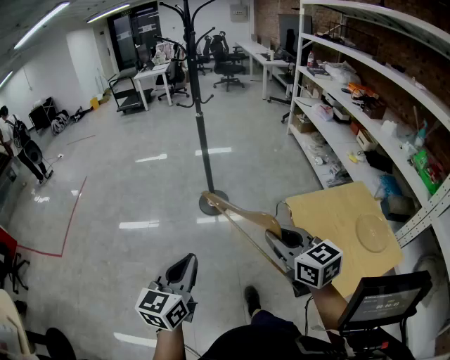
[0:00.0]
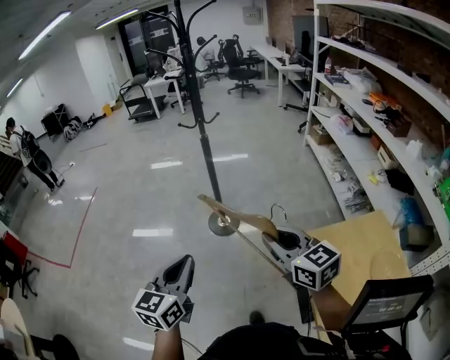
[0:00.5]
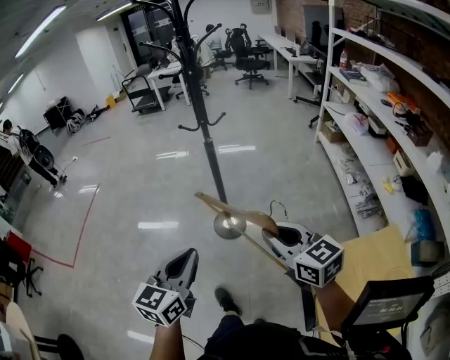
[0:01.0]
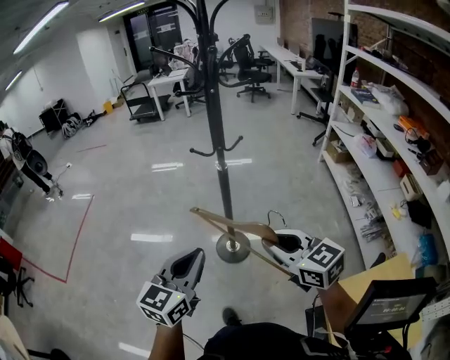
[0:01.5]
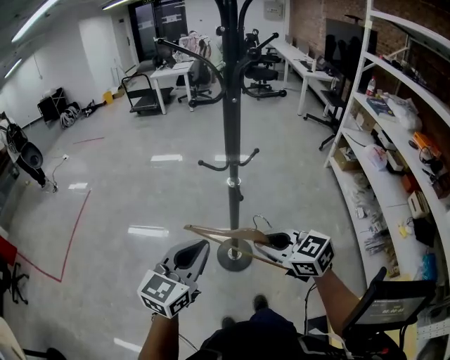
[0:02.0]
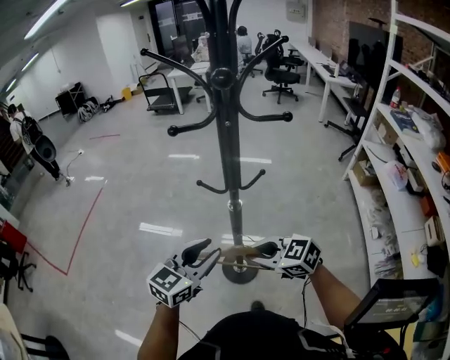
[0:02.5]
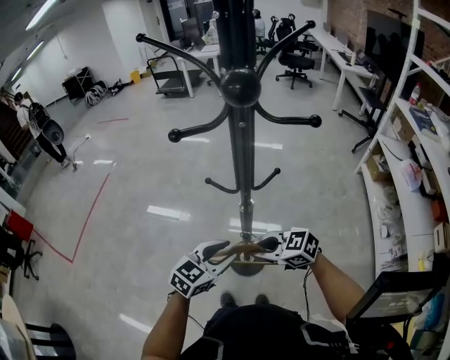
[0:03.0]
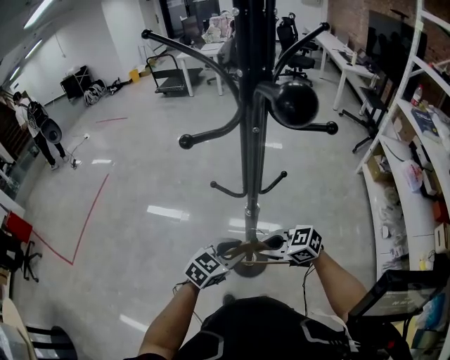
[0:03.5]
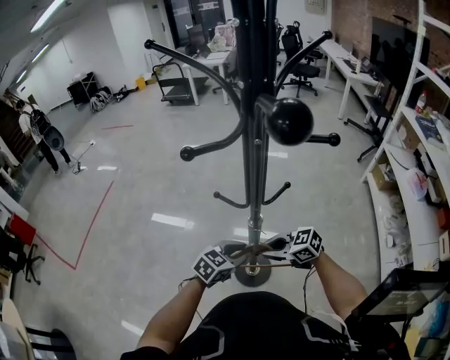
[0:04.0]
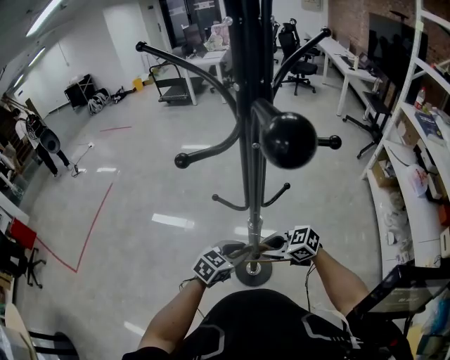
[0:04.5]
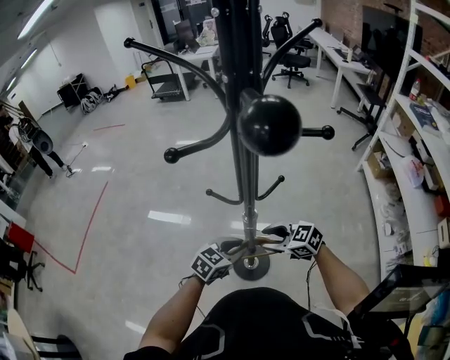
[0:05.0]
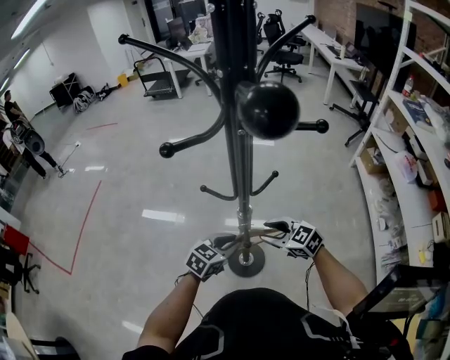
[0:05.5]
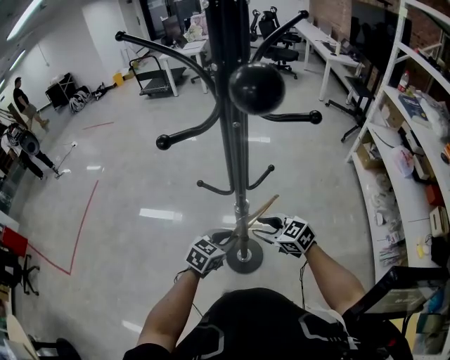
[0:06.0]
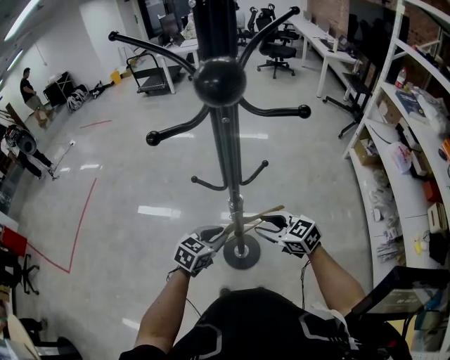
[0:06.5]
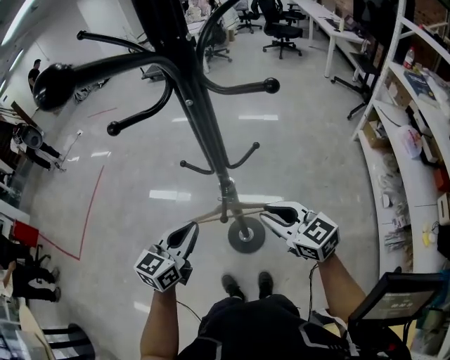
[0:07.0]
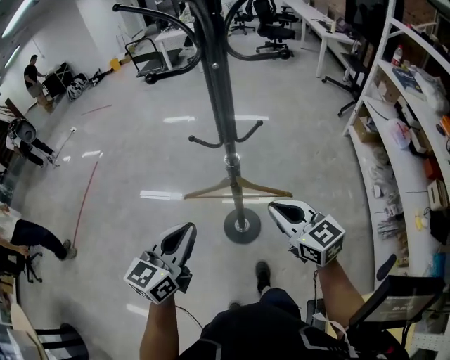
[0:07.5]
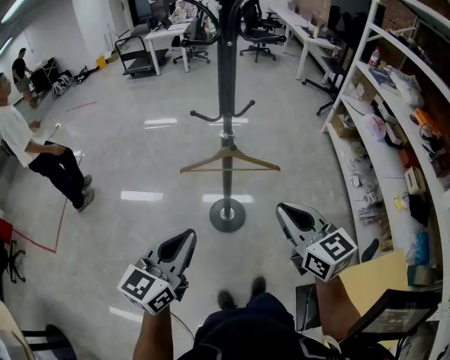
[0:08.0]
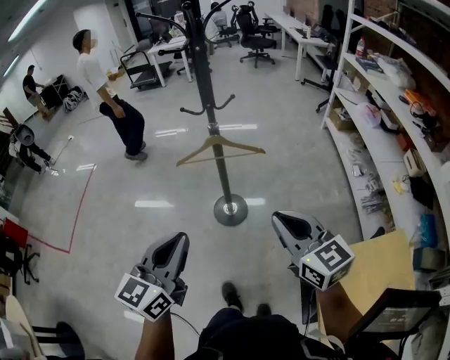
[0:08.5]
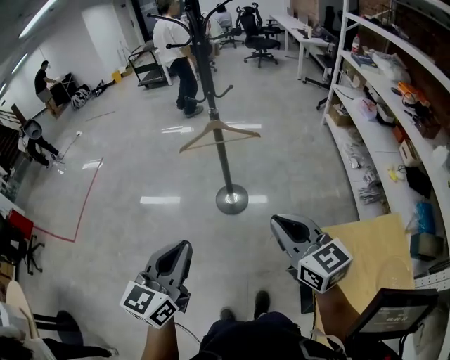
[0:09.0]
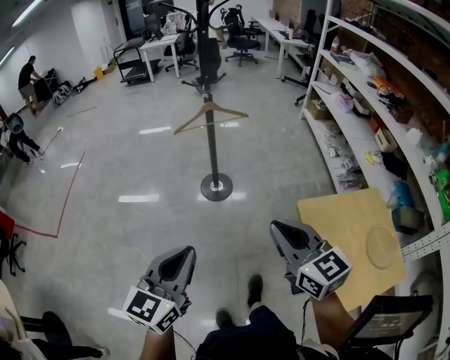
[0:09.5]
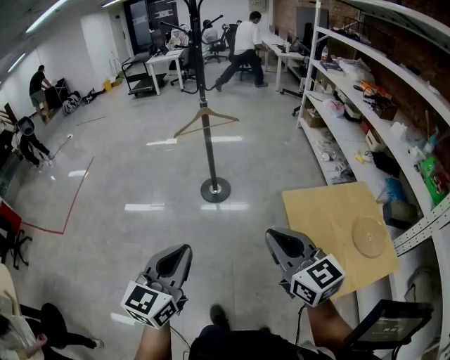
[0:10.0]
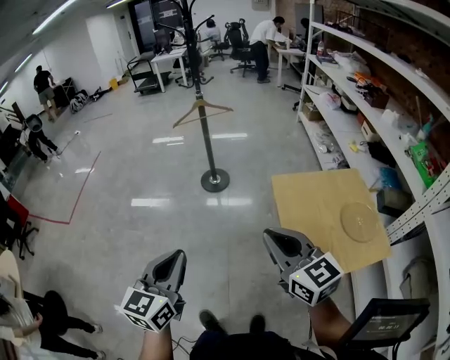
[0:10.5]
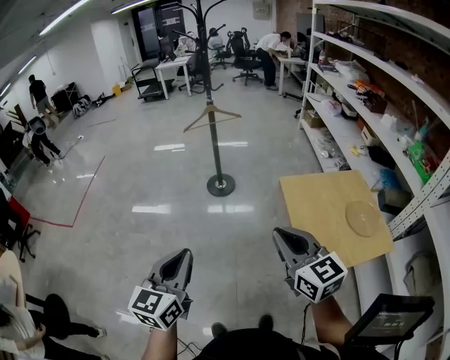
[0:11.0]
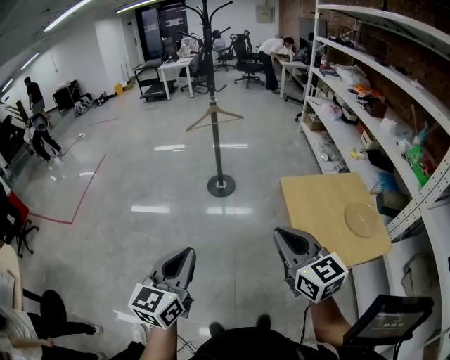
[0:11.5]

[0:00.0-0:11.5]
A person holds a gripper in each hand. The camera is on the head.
0:00.0 to 0:02.0: The two grippers travel together, forward, approximately 50 cm. The right gripper swivels about 30 degrees.
0:02.0 to 0:04.0: The left gripper heads downward, covering roughly 20 cm, rotates roughly 30 degrees, and opens, while the right gripper changes place by approximately 25 cm, and rotates some 30 degrees.
0:04.0 to 0:06.0: The right gripper rotates some 20 degrees, and opens its fingers.
0:06.0 to 0:07.5: The right gripper moves upward and backward, some 20 cm, rotates roughly 20 degrees, and closes up, while the left gripper shifts roughly 25 cm upward, backward and to the left, and changes its angle by some 30 degrees.
0:07.5 to 0:09.5: The two grippers travel together, backward, some 50 cm.
0:09.5 to 0:11.5: Both grippers travel together backward, roughly 25 cm.

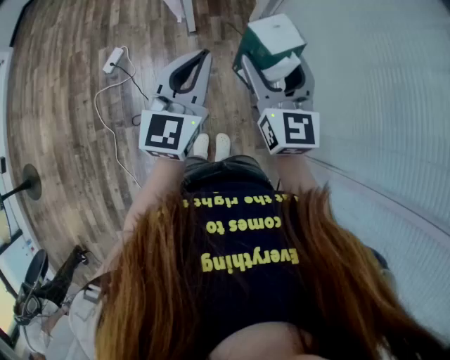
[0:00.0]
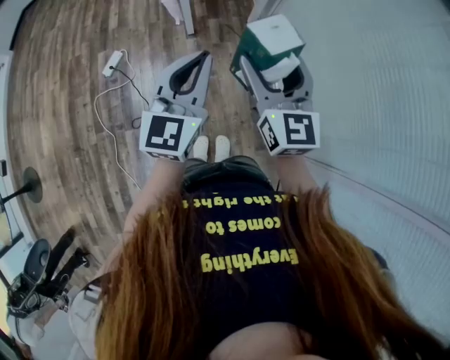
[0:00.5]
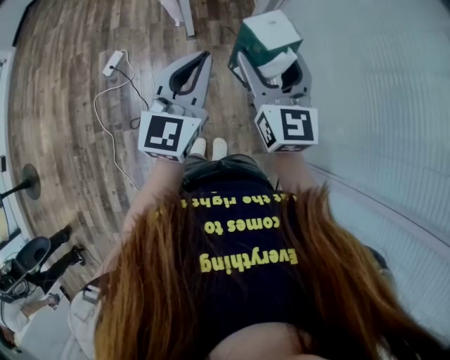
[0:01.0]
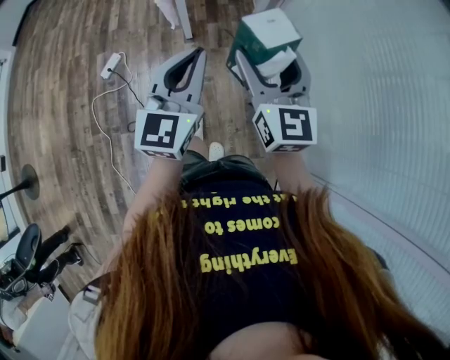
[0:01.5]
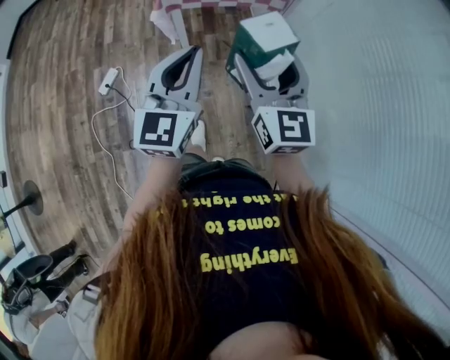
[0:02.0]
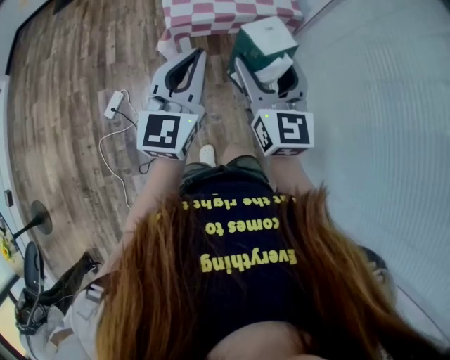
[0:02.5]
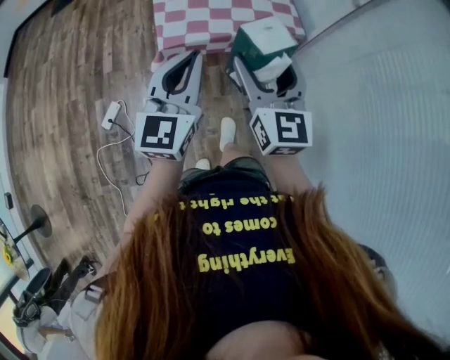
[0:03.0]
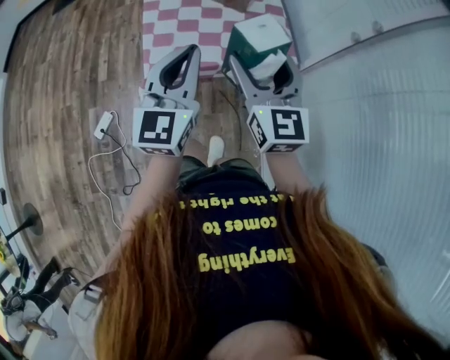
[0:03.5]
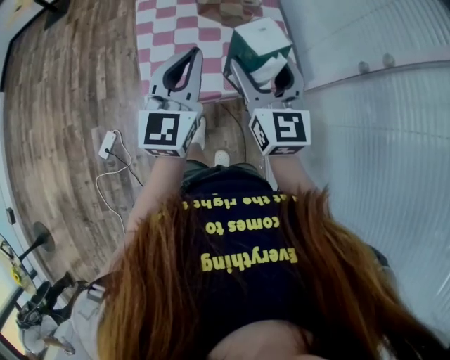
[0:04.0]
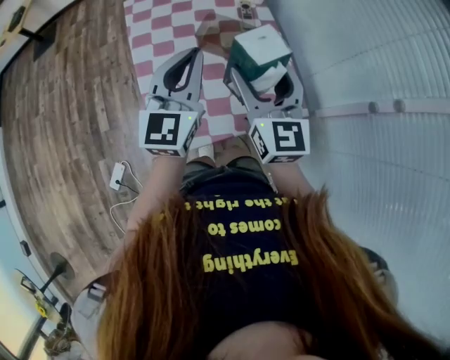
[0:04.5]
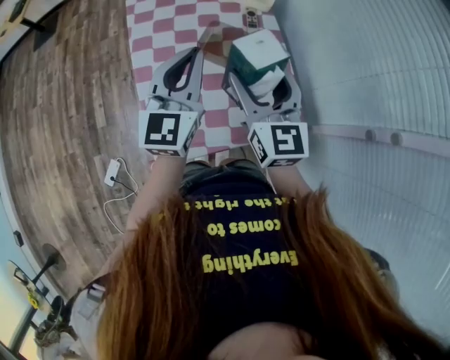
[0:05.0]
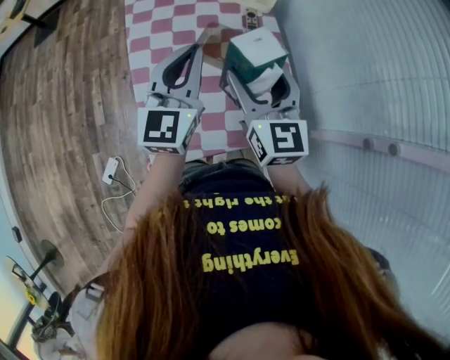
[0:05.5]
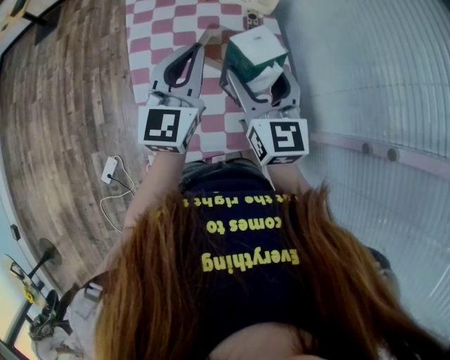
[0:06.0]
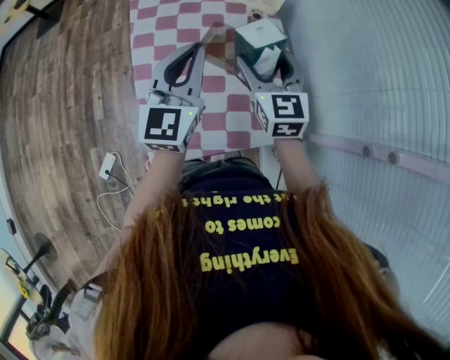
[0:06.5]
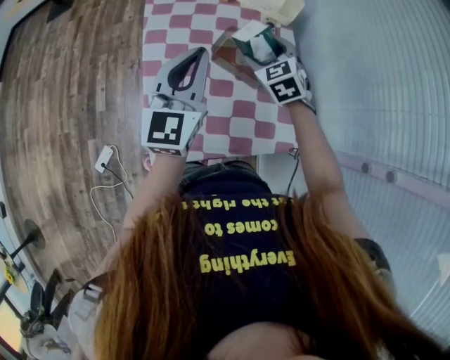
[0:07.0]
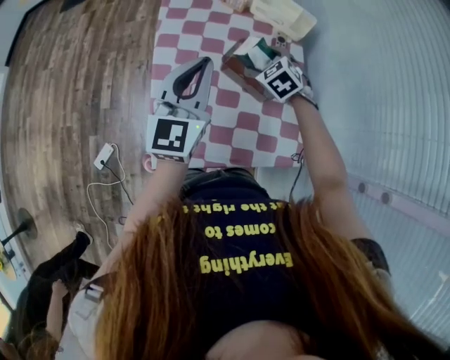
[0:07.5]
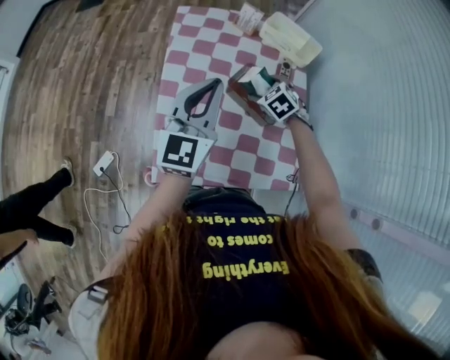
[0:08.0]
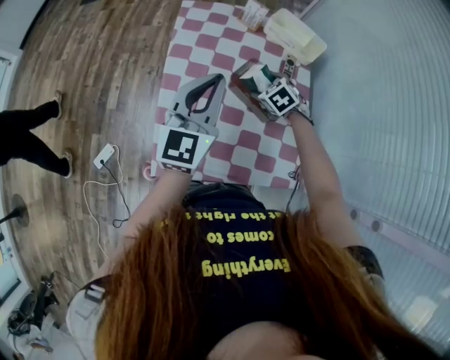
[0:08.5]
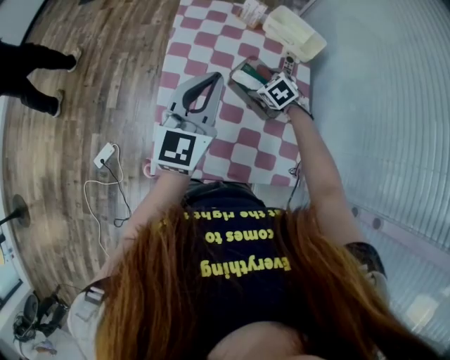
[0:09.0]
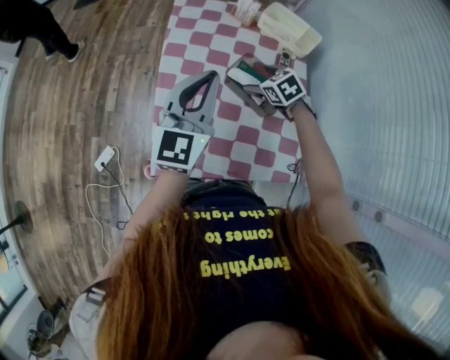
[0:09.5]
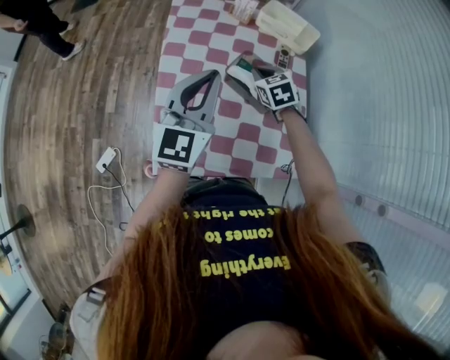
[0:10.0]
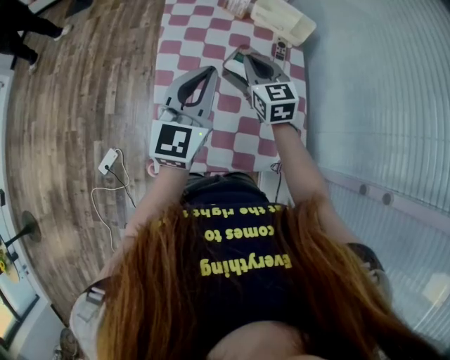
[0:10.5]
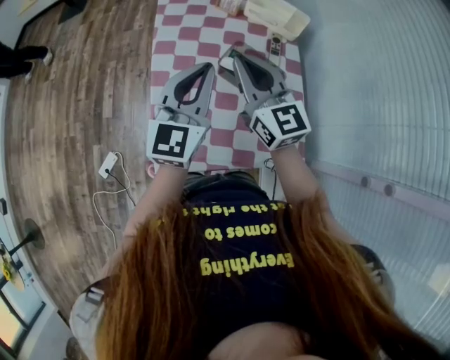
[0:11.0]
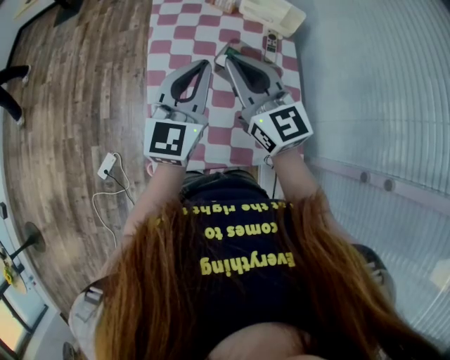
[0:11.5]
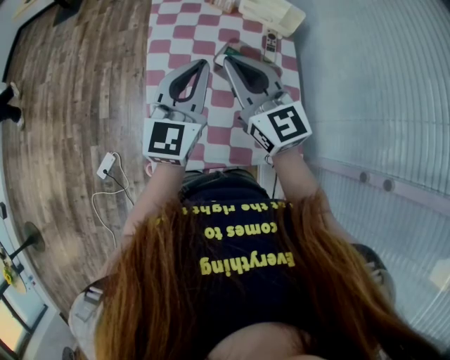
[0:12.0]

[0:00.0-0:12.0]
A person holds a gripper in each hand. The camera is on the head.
0:00.0 to 0:02.0: Both grippers travel together forward, approximately 15 cm.
0:02.0 to 0:04.0: Both grippers are carried forward, some 50 cm.
0:04.0 to 0:06.0: Both grippers travel together forward, roughly 20 cm.
0:06.0 to 0:08.0: The right gripper goes some 30 cm downward and forward, and angles its fingers downward, by roughly 50 degrees, while the left gripper ends up some 5 cm from where it was.
0:08.0 to 0:10.0: The right gripper rotates approximately 20 degrees, and closes its fingers.
0:10.0 to 0:12.0: The right gripper shifts roughly 25 cm upward and backward, and angles its fingers upward, by approximately 40 degrees.

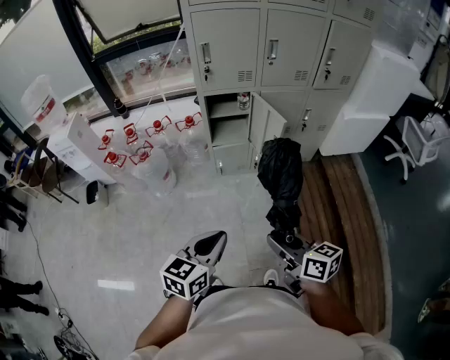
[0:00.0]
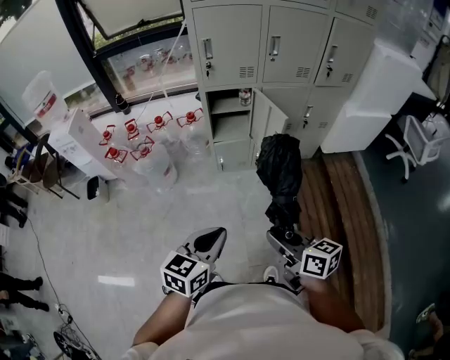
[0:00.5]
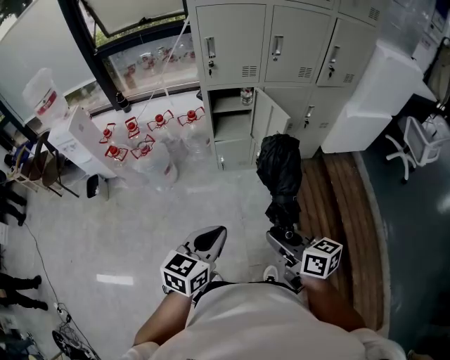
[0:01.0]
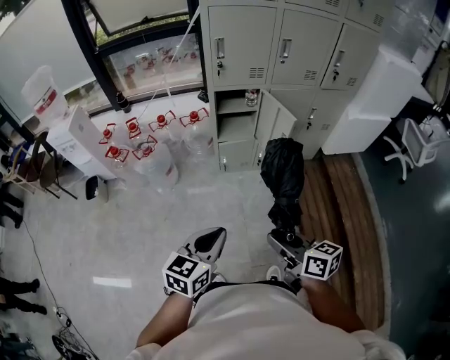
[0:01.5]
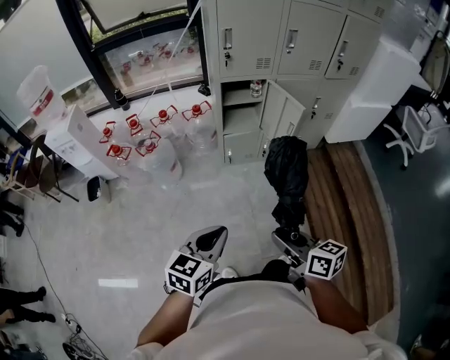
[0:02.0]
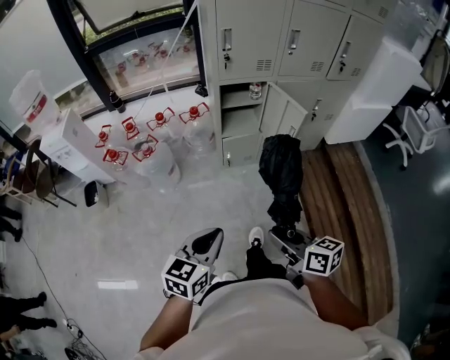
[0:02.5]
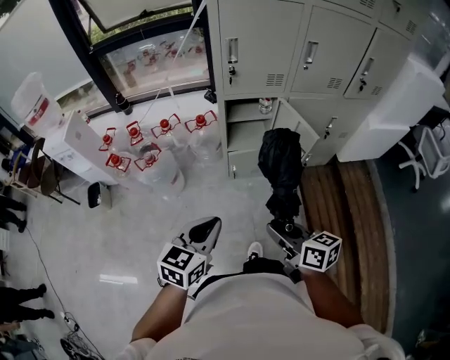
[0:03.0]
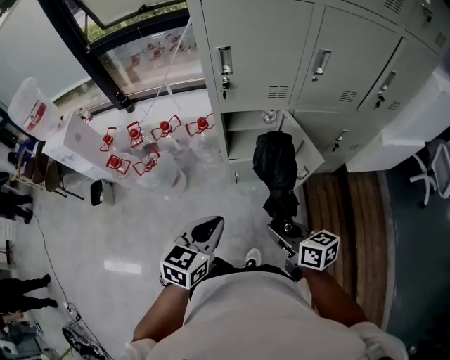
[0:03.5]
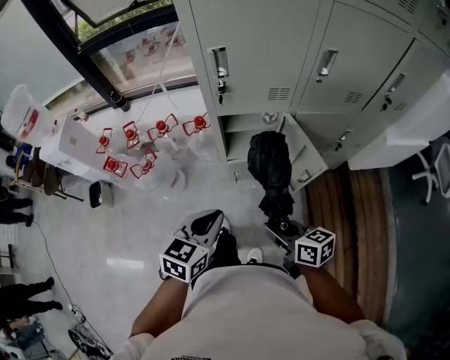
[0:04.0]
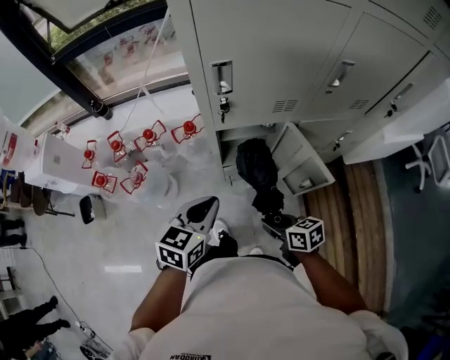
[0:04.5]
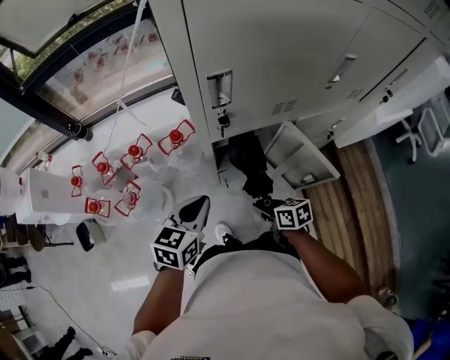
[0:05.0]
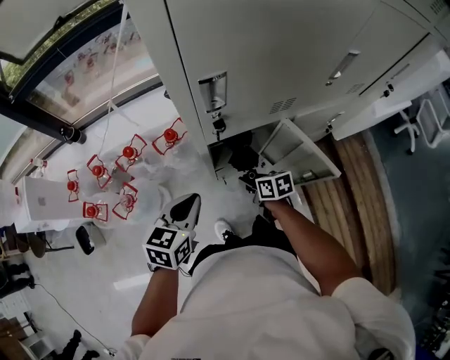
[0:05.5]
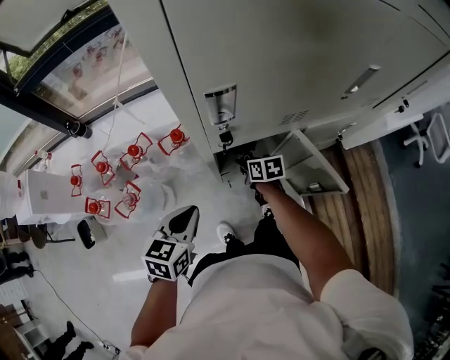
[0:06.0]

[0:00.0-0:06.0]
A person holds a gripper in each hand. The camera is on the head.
0:00.0 to 0:02.0: The grippers both shift to the left by roughly 10 cm.
0:02.0 to 0:04.0: The grippers both shift forward by about 35 cm.
0:04.0 to 0:06.0: The right gripper goes about 40 cm forward and downward, and changes its angle by about 30 degrees. Meanwhile the left gripper is displaced forward and to the left by roughly 25 cm.
